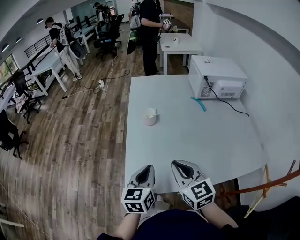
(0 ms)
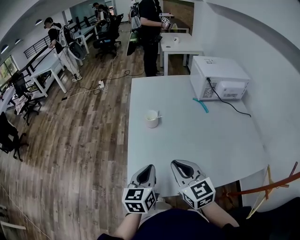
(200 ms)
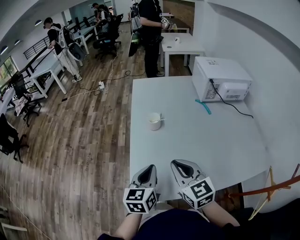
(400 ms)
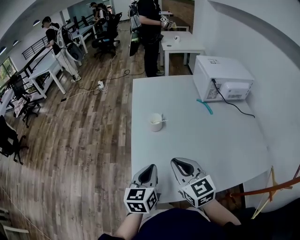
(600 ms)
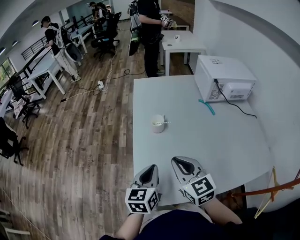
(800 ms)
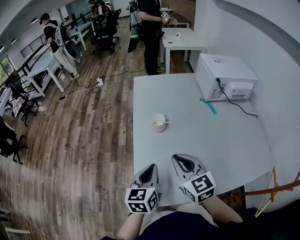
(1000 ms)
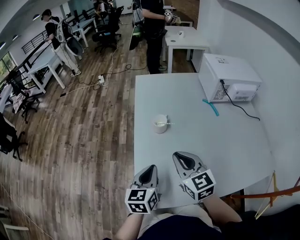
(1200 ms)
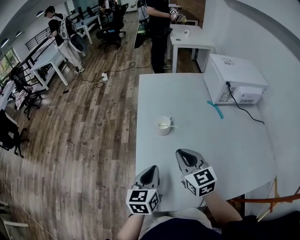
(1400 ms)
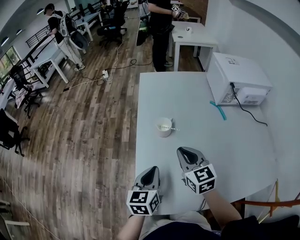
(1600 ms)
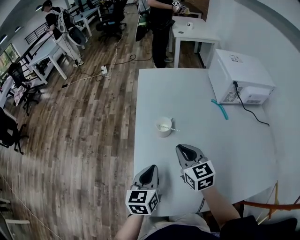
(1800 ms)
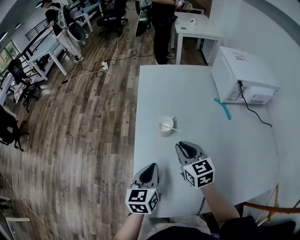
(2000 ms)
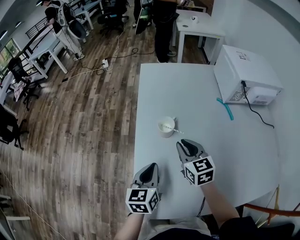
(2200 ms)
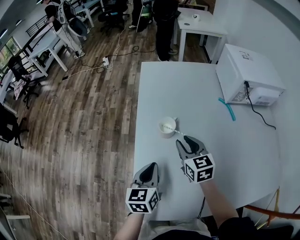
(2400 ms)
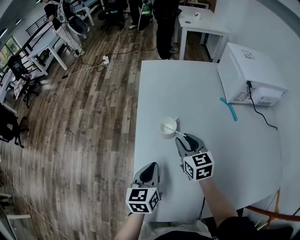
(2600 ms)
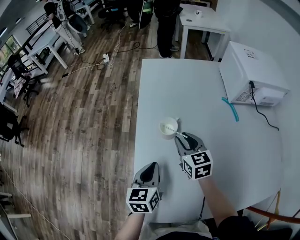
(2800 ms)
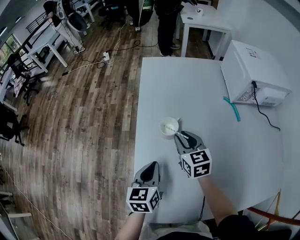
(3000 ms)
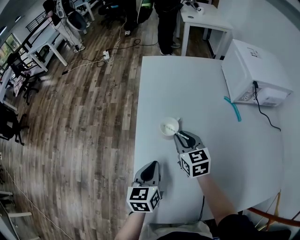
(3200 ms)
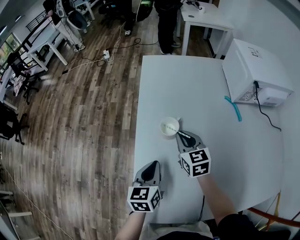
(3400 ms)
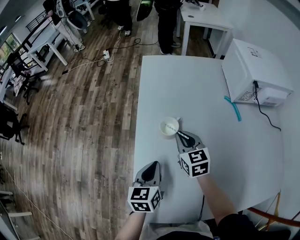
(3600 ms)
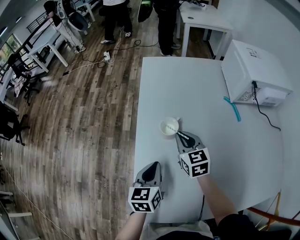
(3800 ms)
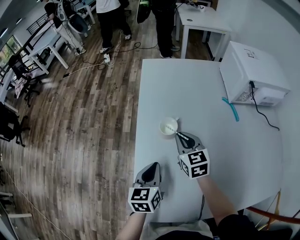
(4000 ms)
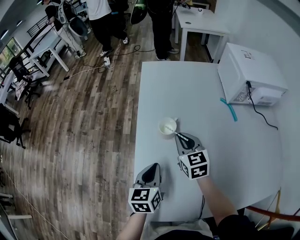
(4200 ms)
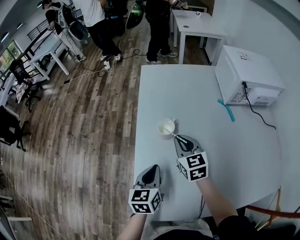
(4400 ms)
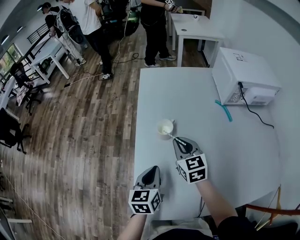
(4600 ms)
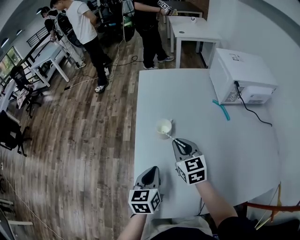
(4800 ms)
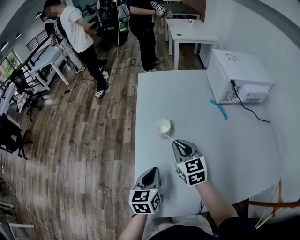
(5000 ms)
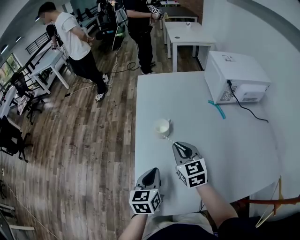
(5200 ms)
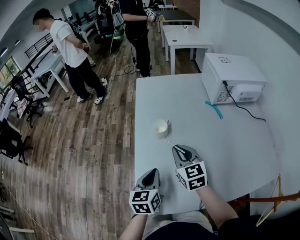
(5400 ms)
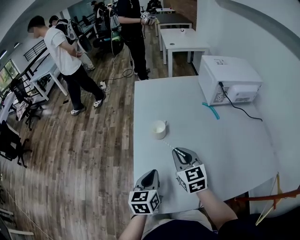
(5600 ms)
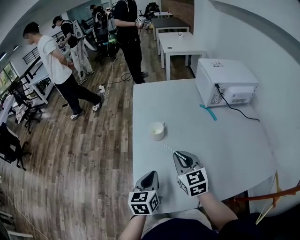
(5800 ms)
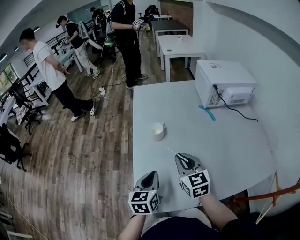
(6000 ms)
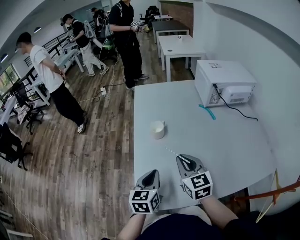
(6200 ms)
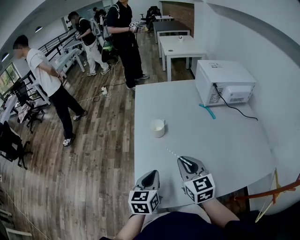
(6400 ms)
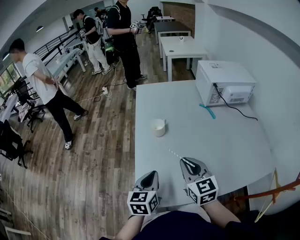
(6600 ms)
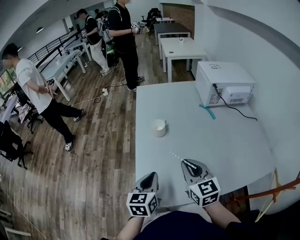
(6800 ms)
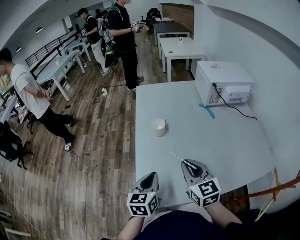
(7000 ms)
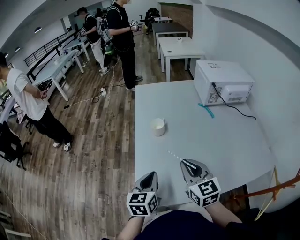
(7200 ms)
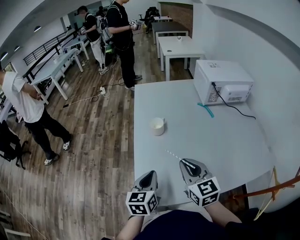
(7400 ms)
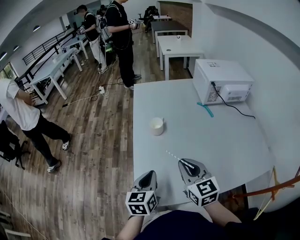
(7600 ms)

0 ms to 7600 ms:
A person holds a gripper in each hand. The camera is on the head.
0 ms to 1600 ms: The left gripper moves forward, about 15 cm; the right gripper goes some 20 cm forward.
1600 ms to 3000 ms: The left gripper is displaced forward and downward by roughly 10 cm; the right gripper heads forward and downward, covering about 15 cm.
3000 ms to 4600 ms: The right gripper ends up approximately 5 cm from where it was.
4600 ms to 6000 ms: The right gripper is displaced backward and upward by about 15 cm, while the left gripper travels backward by roughly 5 cm.
6000 ms to 7600 ms: The right gripper travels backward by roughly 5 cm.

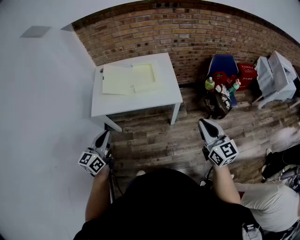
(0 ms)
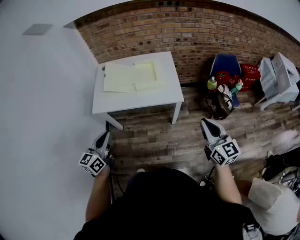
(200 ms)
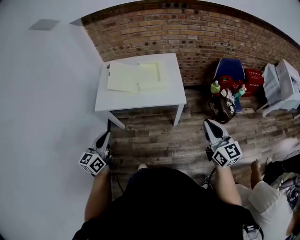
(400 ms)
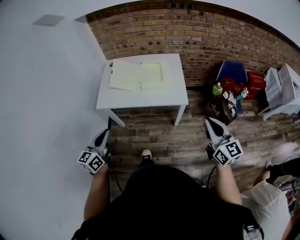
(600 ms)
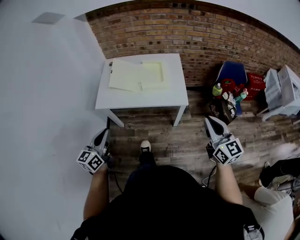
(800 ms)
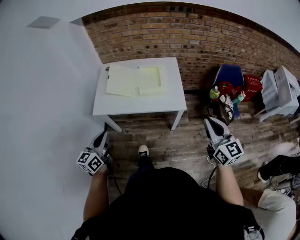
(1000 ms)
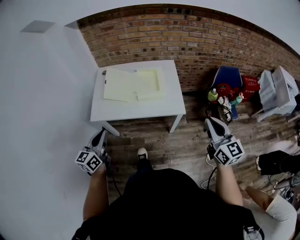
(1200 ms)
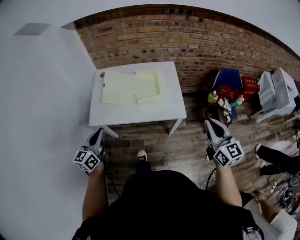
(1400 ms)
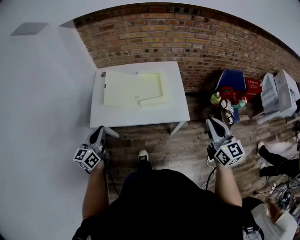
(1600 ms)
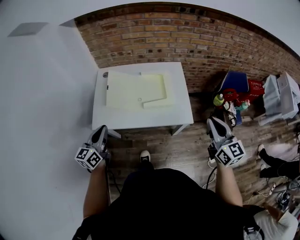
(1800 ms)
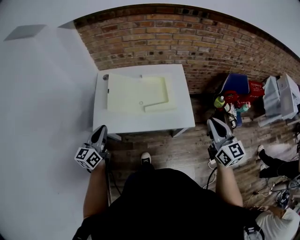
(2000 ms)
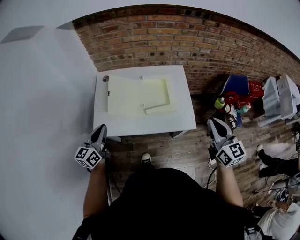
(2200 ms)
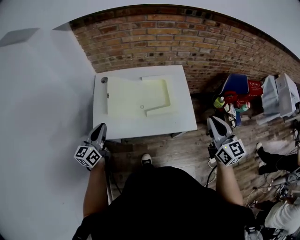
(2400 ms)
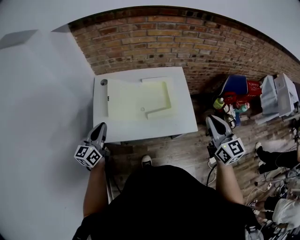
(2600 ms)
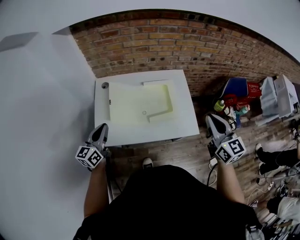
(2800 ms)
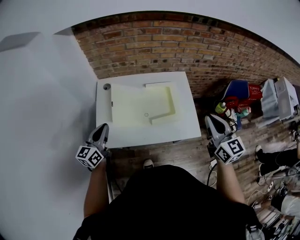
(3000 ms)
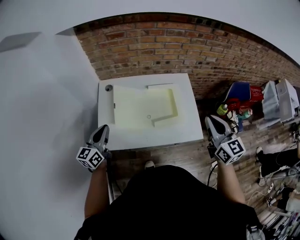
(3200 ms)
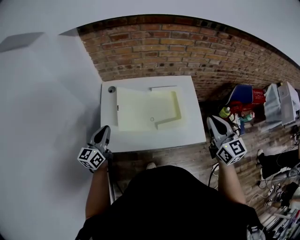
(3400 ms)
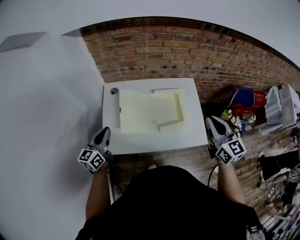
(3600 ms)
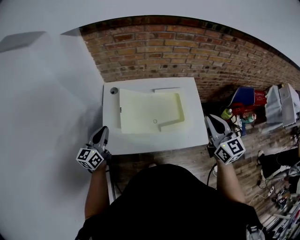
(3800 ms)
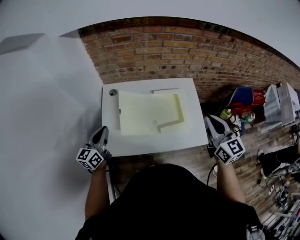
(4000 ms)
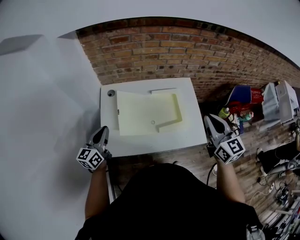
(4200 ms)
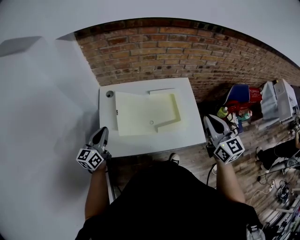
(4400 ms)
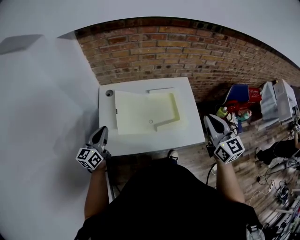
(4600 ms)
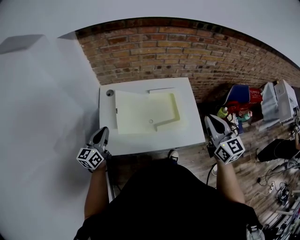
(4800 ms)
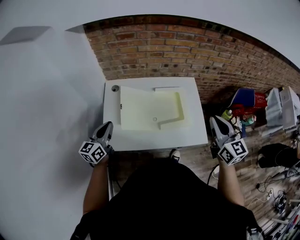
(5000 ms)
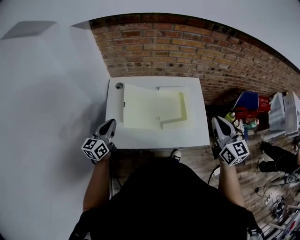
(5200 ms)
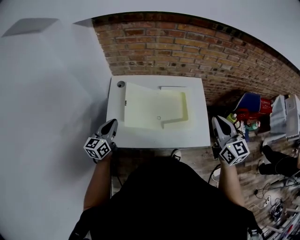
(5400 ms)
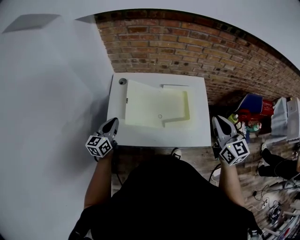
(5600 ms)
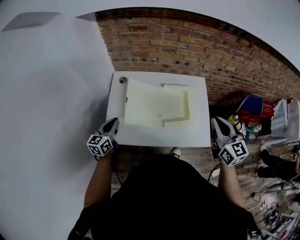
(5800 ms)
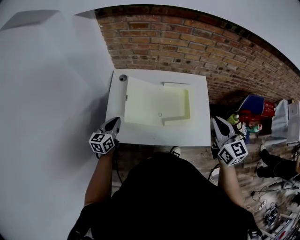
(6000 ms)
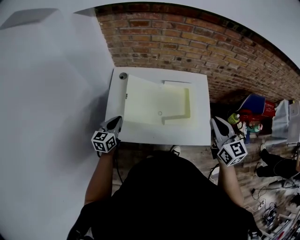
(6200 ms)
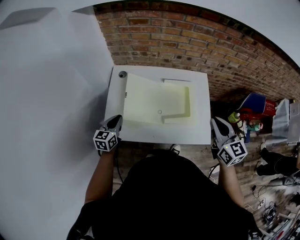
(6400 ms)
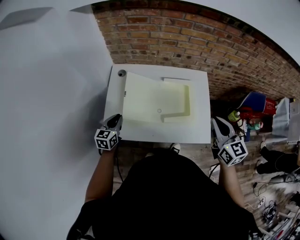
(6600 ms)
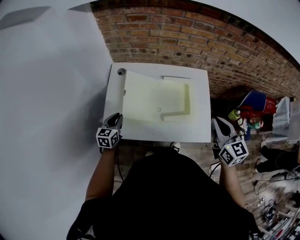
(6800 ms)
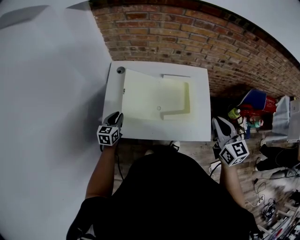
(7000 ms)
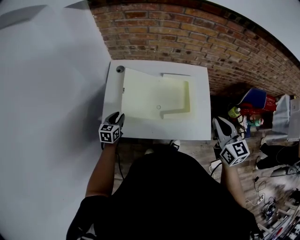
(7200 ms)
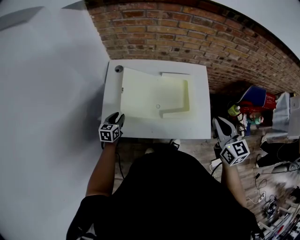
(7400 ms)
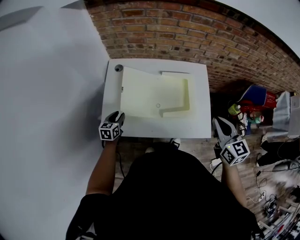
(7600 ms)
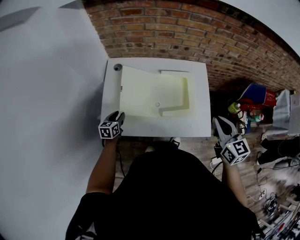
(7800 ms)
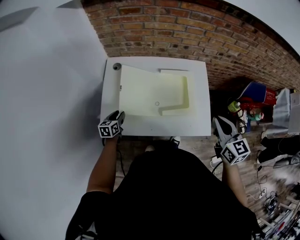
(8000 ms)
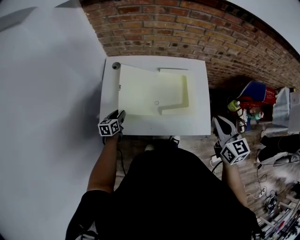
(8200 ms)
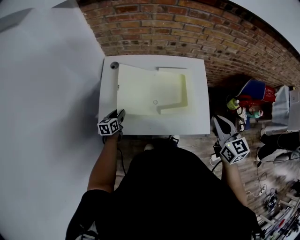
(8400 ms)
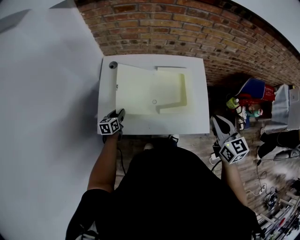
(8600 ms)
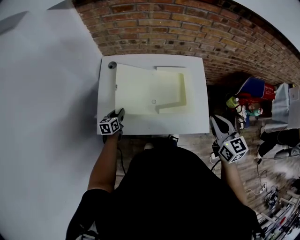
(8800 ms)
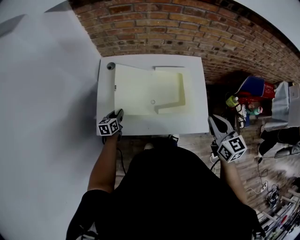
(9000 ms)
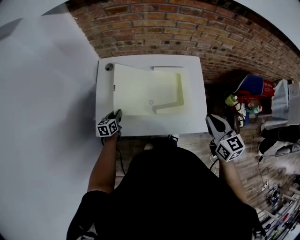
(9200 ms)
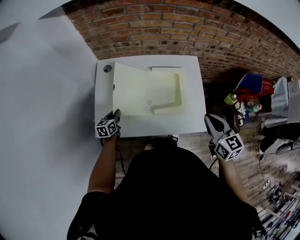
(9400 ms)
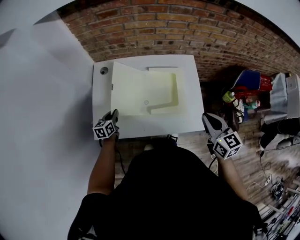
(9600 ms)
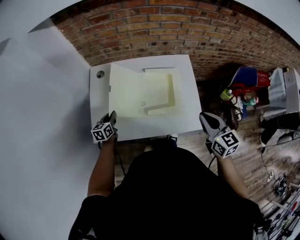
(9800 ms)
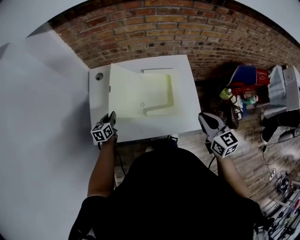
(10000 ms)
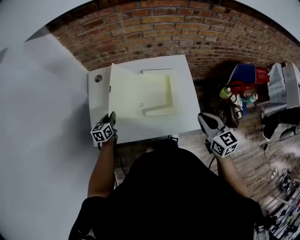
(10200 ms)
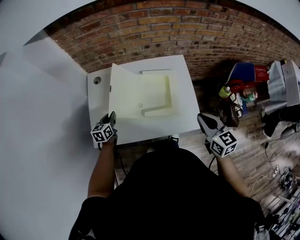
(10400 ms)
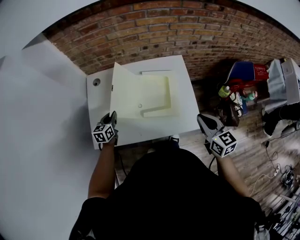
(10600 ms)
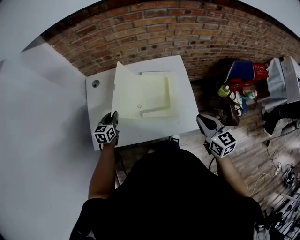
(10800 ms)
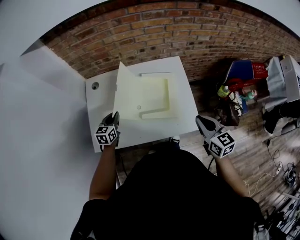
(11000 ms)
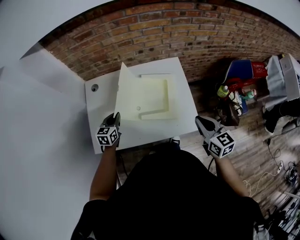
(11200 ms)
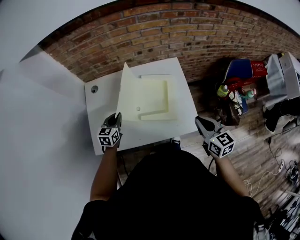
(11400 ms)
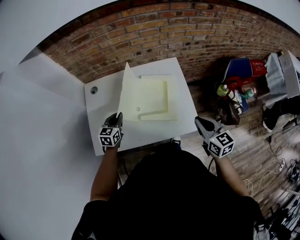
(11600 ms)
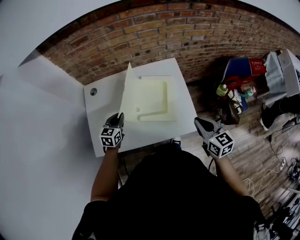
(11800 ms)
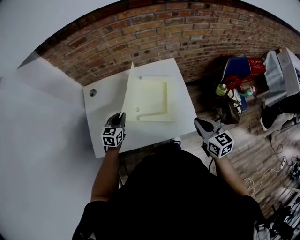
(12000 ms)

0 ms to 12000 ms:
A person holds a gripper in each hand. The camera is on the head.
0 ms to 1600 ms: Both grippers move forward, about 20 cm.
1600 ms to 3000 ms: Both grippers travel together forward and to the left, approximately 20 cm.
3000 ms to 4400 ms: The left gripper changes place by about 5 cm. The right gripper moves approximately 5 cm.
4400 ms to 6000 ms: The left gripper goes about 10 cm downward.
6000 ms to 7600 ms: The right gripper ends up approximately 5 cm from where it was. Meanwhile the left gripper goes roughly 15 cm downward, and opens.
7600 ms to 9000 ms: The grippers stay close to where they were, moving slightly.
9000 ms to 10400 ms: The left gripper moves upward, approximately 5 cm.
10400 ms to 12000 ms: The left gripper is displaced to the right and upward by roughly 15 cm, and swivels roughly 20 degrees.

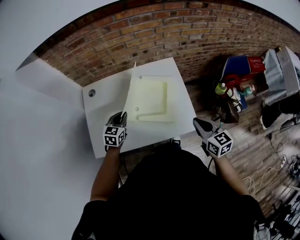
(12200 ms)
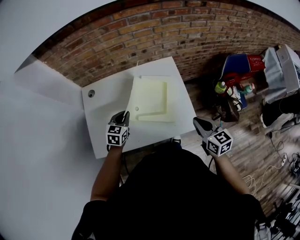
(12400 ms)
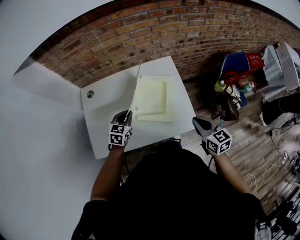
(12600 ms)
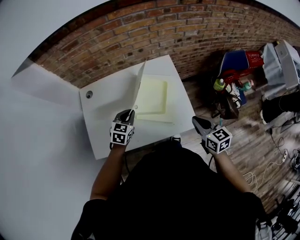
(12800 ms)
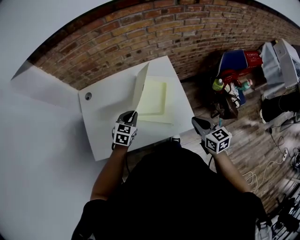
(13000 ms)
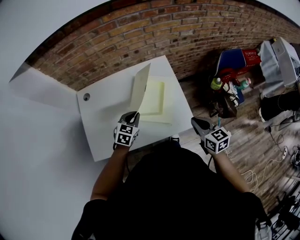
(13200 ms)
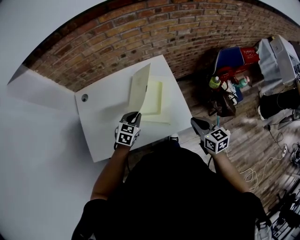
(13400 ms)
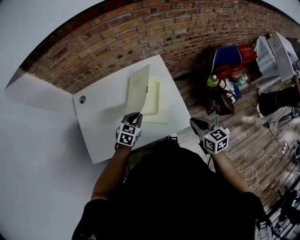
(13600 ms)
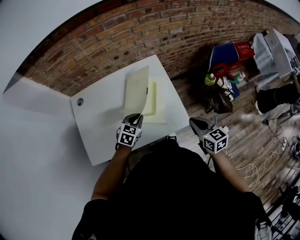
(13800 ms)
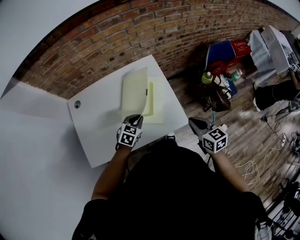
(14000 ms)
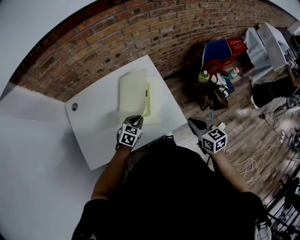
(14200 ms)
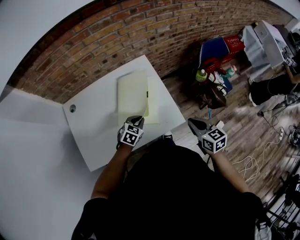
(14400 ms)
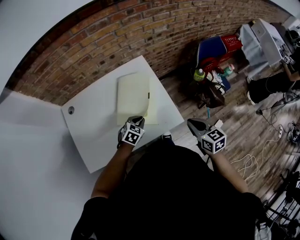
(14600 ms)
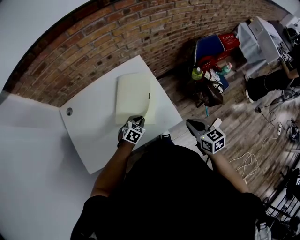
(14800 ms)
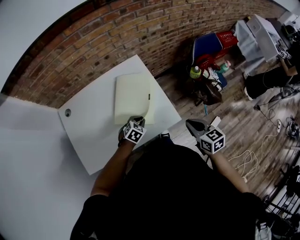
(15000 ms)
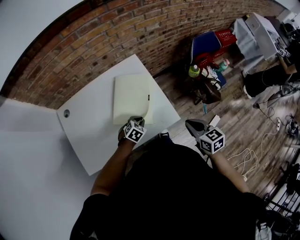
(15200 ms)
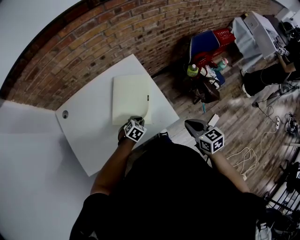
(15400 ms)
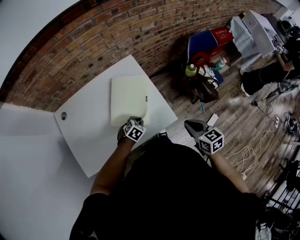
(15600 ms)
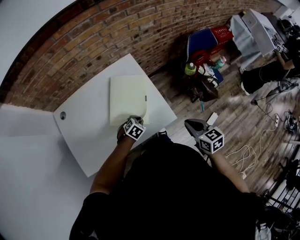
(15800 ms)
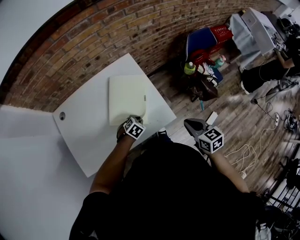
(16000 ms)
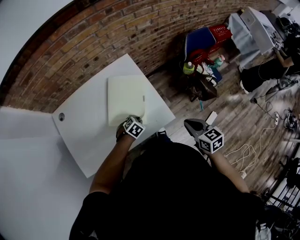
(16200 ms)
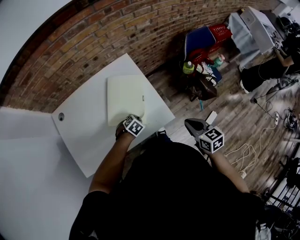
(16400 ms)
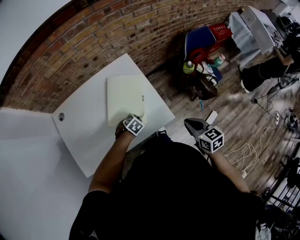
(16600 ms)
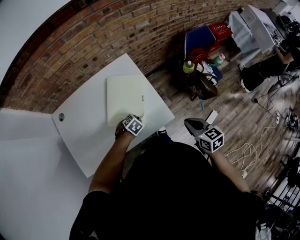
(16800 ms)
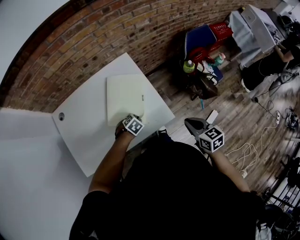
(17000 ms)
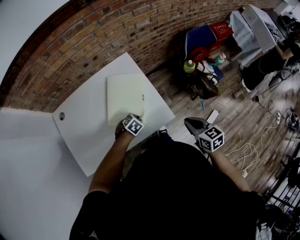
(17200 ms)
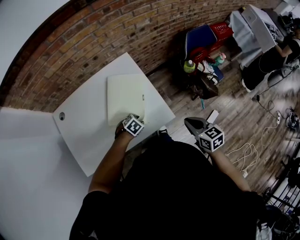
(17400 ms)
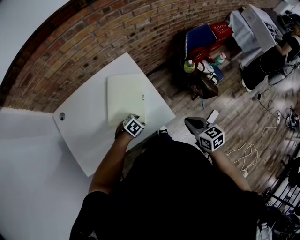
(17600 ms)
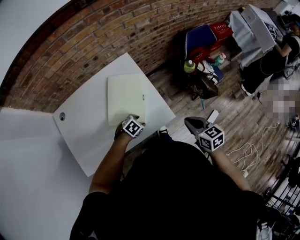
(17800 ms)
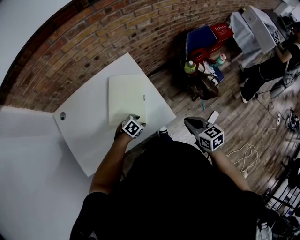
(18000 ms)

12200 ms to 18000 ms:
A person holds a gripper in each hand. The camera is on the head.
12200 ms to 13600 ms: The left gripper is displaced to the right by about 15 cm, while the right gripper changes place by about 5 cm.
13600 ms to 15000 ms: The left gripper goes roughly 15 cm to the right and downward, and swivels about 20 degrees, while the right gripper moves roughly 5 cm.
15000 ms to 16600 ms: The left gripper shifts about 5 cm downward.
16600 ms to 18000 ms: The left gripper opens.
